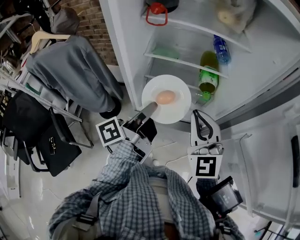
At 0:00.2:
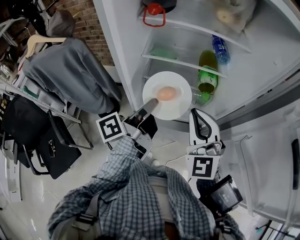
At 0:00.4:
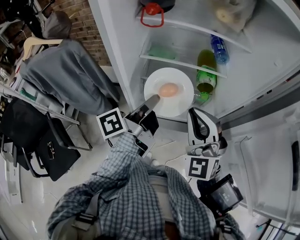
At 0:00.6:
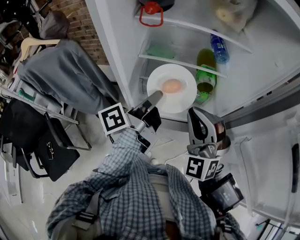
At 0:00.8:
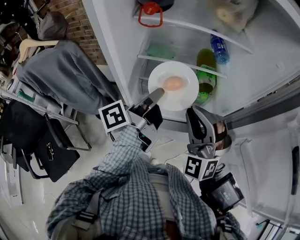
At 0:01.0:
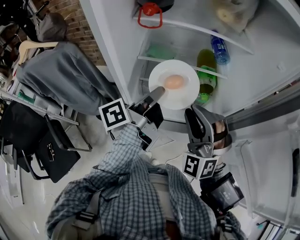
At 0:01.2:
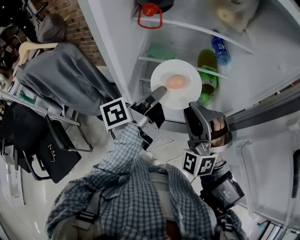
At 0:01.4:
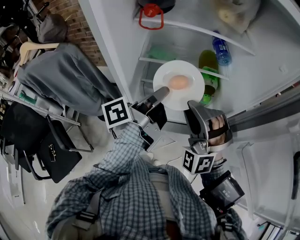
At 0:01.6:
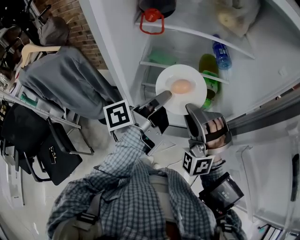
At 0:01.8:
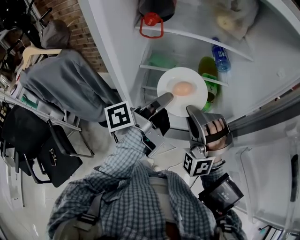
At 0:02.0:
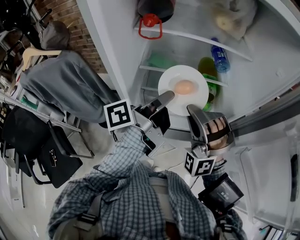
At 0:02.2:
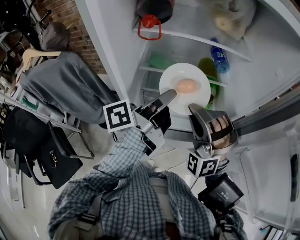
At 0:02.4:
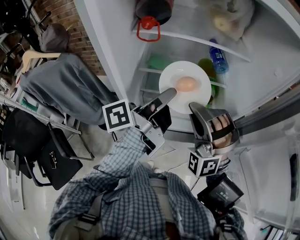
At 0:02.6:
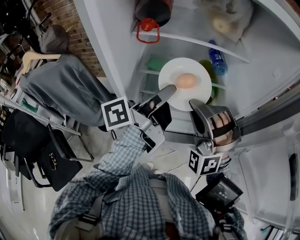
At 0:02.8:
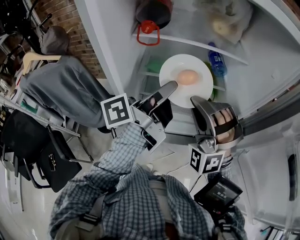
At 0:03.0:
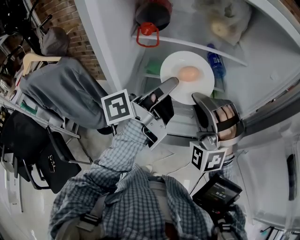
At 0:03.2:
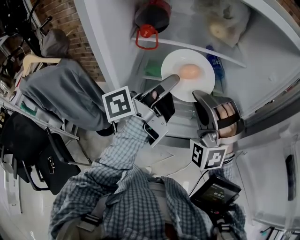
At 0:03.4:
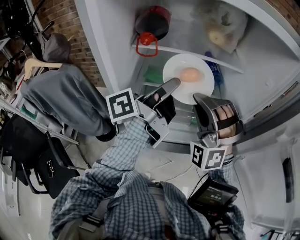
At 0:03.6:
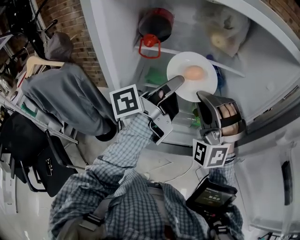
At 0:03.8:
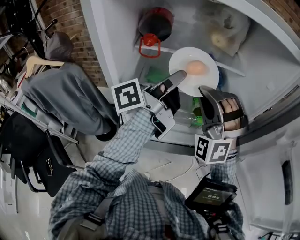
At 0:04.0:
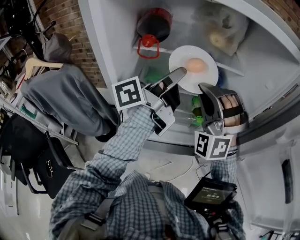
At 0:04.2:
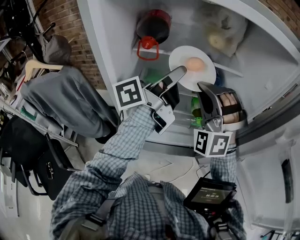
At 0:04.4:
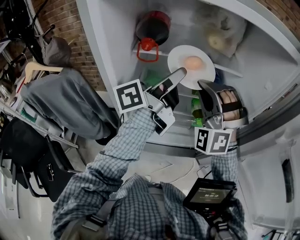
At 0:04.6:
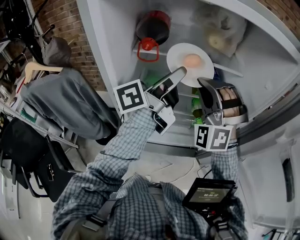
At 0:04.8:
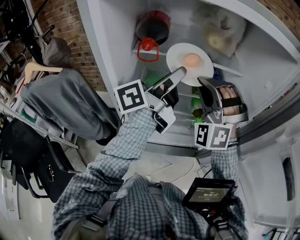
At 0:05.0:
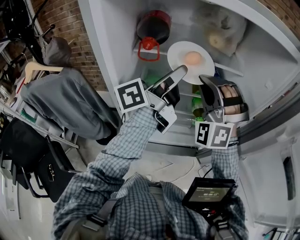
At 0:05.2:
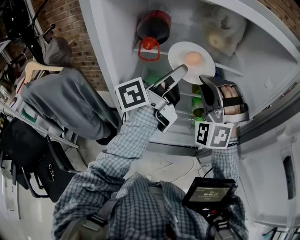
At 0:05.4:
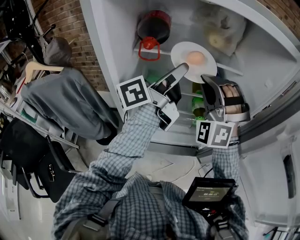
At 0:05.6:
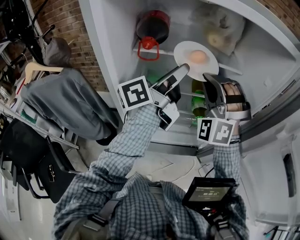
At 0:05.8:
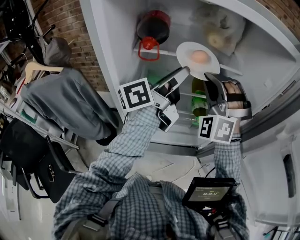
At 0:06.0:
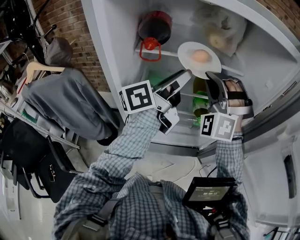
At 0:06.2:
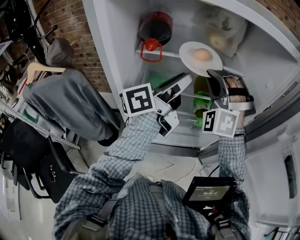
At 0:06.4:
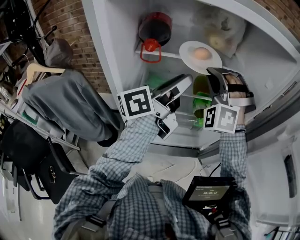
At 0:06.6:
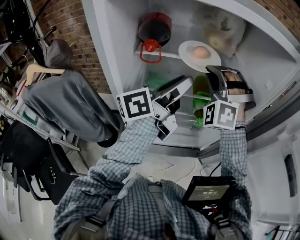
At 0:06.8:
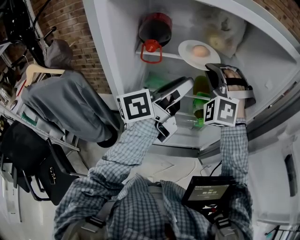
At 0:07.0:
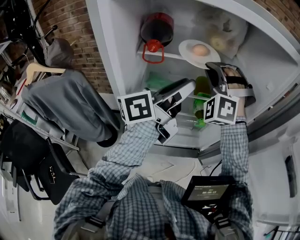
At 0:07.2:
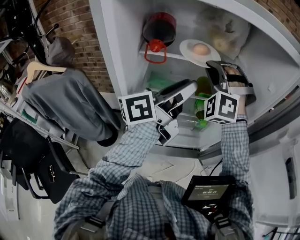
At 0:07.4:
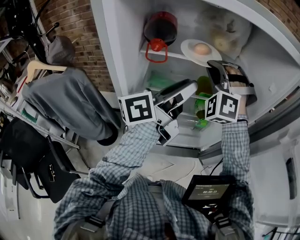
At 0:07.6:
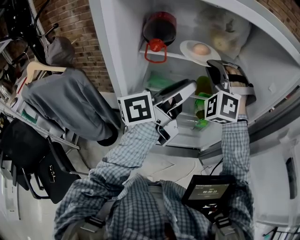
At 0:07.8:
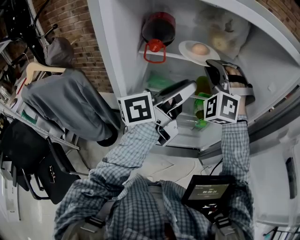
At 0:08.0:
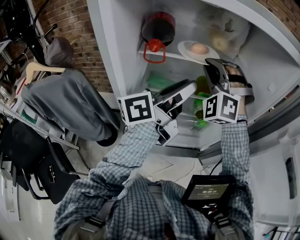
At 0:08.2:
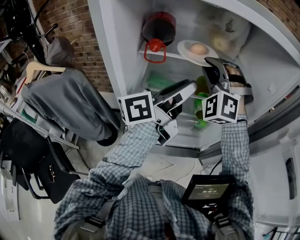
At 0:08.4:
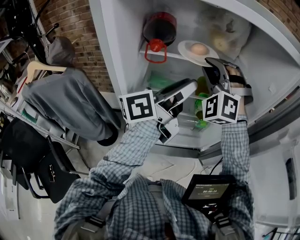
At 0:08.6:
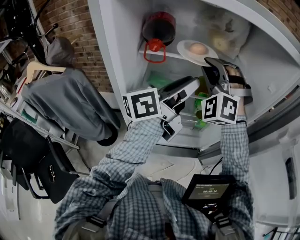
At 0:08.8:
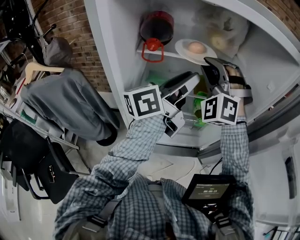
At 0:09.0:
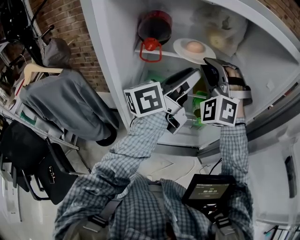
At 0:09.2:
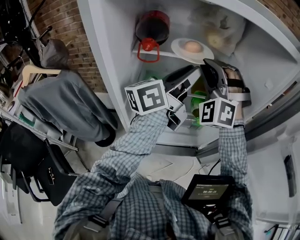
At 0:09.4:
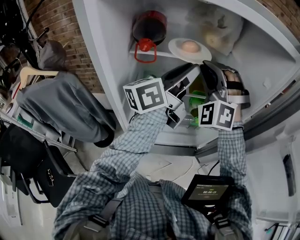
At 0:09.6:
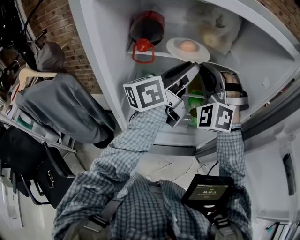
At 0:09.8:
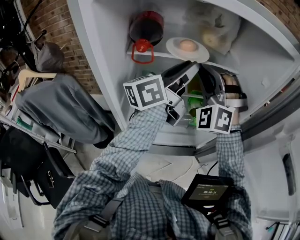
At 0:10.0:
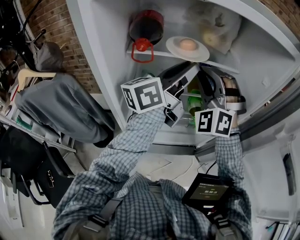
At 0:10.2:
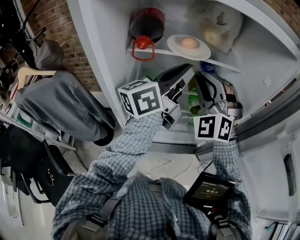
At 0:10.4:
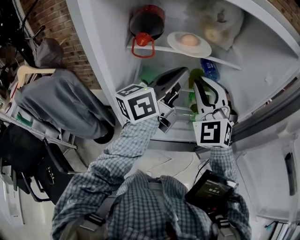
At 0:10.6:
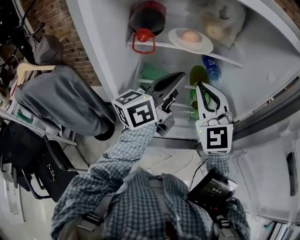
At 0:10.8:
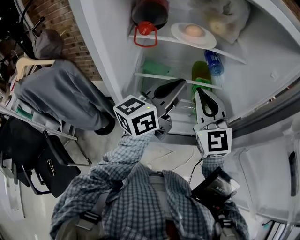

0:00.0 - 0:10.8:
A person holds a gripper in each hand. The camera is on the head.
0:00.0 - 0:01.6: The right gripper is displaced forward by roughly 5 cm, twists about 60 degrees counterclockwise, seen from behind, and opens. Meanwhile the left gripper goes about 10 cm forward.
0:01.6 - 0:03.0: The two grippers go about 10 cm upward.
0:03.0 - 0:04.6: The two grippers go some 5 cm forward.
0:04.6 - 0:06.2: The grippers make only small movements.
0:06.2 - 0:07.8: The grippers stay close to where they were, moving slightly.
0:07.8 - 0:09.2: The left gripper shifts by approximately 5 cm.
0:09.2 - 0:10.8: The right gripper travels backward and downward by about 10 cm, and rolls clockwise, seen from behind, by about 60 degrees. Meanwhile the left gripper is displaced downward and backward by some 10 cm, and closes up.

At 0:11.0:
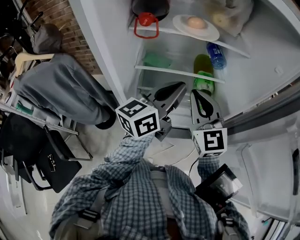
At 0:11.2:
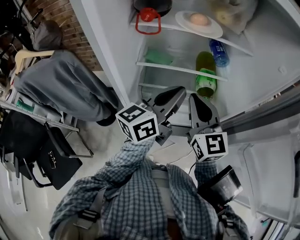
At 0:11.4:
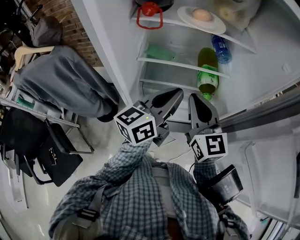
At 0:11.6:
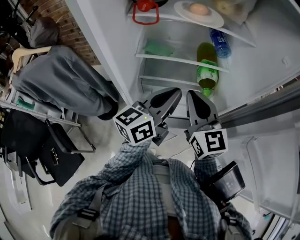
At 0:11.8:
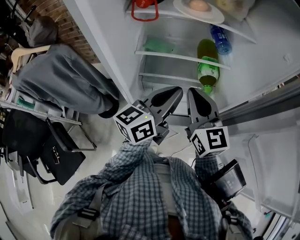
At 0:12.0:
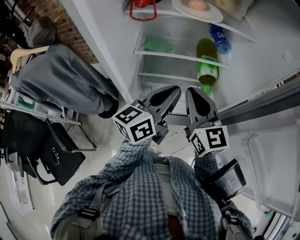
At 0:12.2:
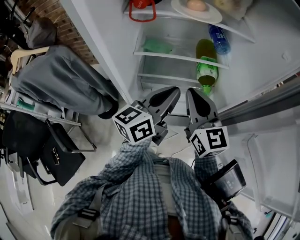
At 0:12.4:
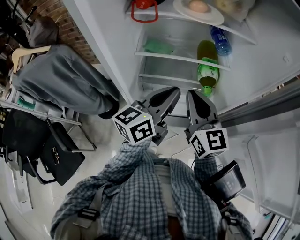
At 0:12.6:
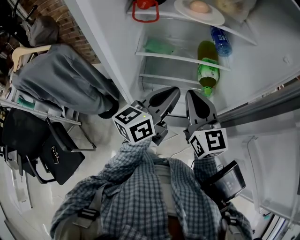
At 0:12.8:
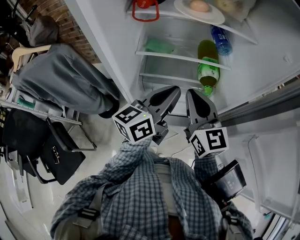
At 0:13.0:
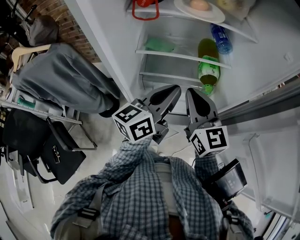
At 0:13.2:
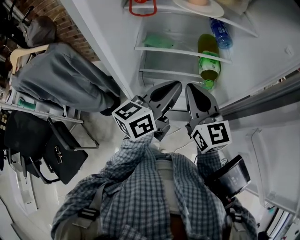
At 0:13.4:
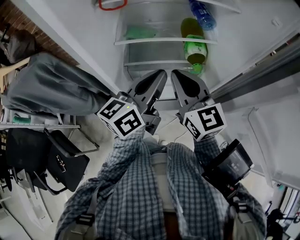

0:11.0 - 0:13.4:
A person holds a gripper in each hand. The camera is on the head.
0:11.0 - 0:12.2: The left gripper moves downward, about 5 cm.
0:12.2 - 0:13.4: The grippers stay close to where they were, moving slightly.

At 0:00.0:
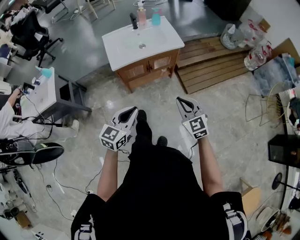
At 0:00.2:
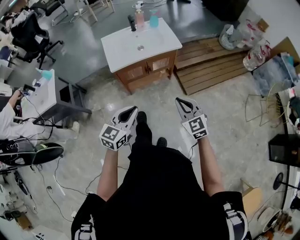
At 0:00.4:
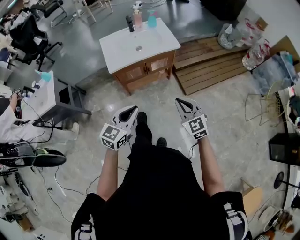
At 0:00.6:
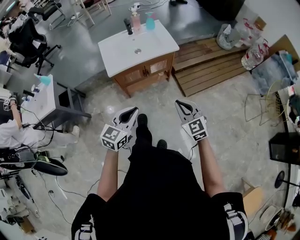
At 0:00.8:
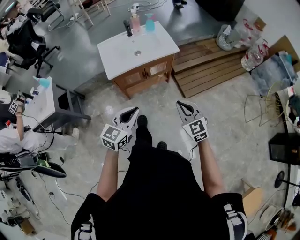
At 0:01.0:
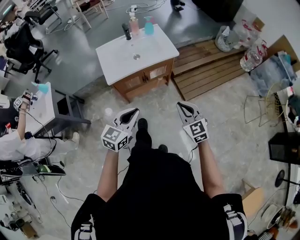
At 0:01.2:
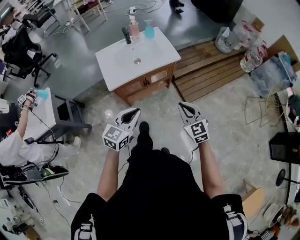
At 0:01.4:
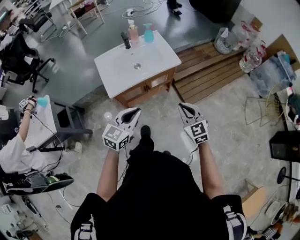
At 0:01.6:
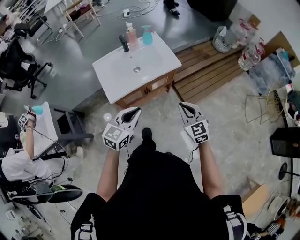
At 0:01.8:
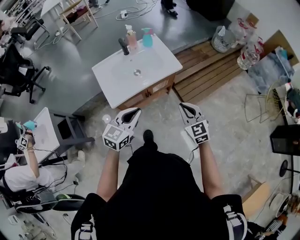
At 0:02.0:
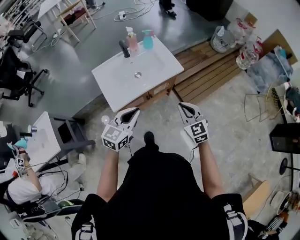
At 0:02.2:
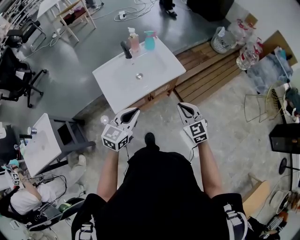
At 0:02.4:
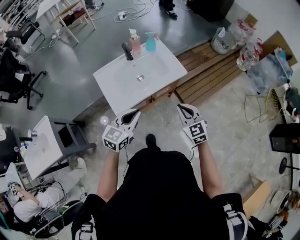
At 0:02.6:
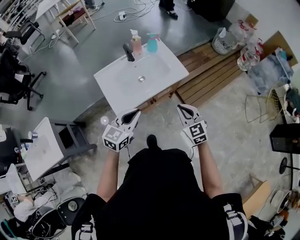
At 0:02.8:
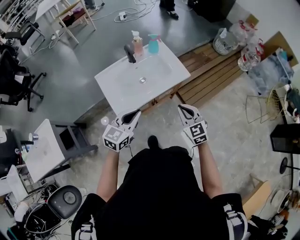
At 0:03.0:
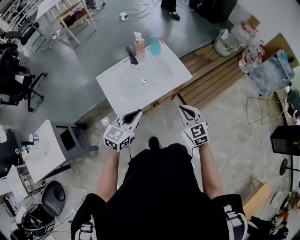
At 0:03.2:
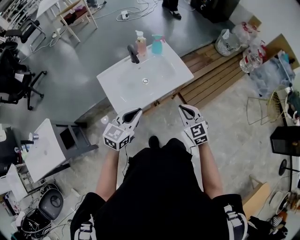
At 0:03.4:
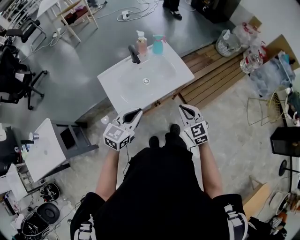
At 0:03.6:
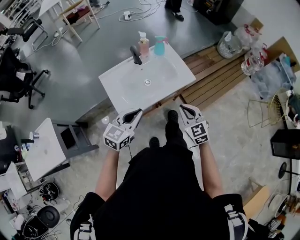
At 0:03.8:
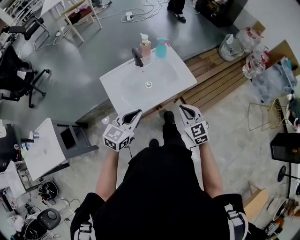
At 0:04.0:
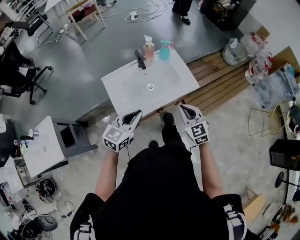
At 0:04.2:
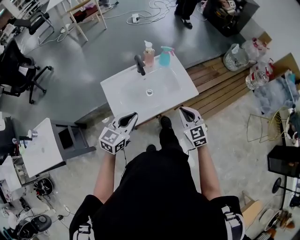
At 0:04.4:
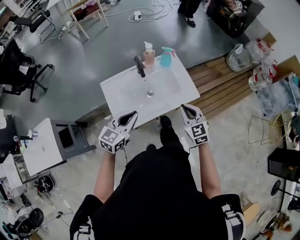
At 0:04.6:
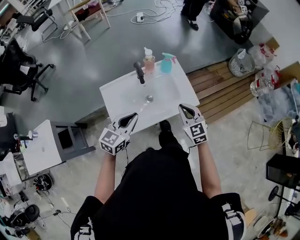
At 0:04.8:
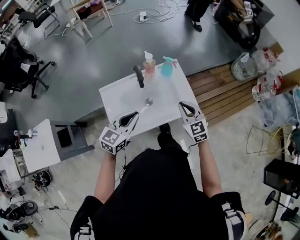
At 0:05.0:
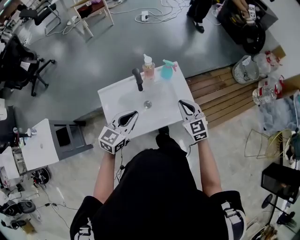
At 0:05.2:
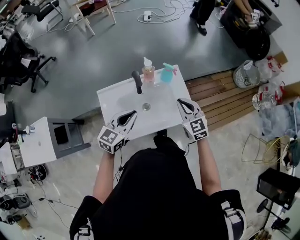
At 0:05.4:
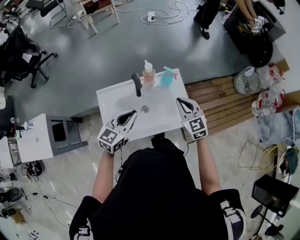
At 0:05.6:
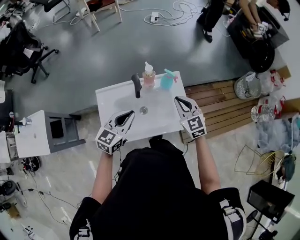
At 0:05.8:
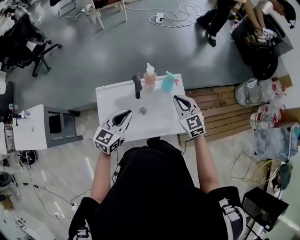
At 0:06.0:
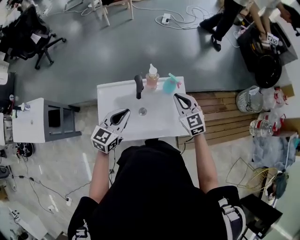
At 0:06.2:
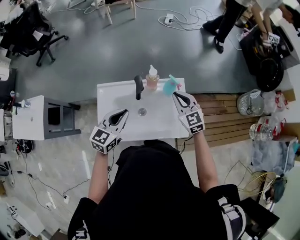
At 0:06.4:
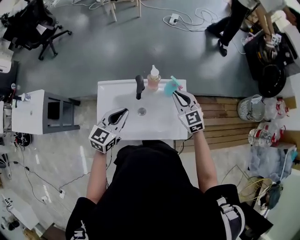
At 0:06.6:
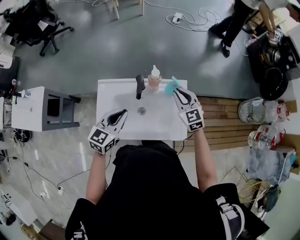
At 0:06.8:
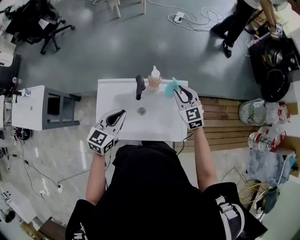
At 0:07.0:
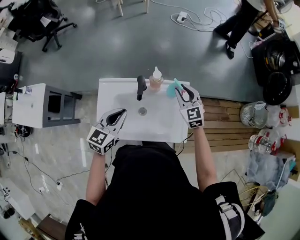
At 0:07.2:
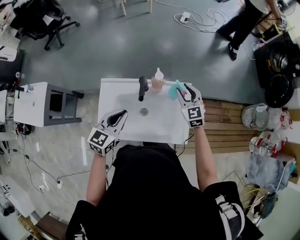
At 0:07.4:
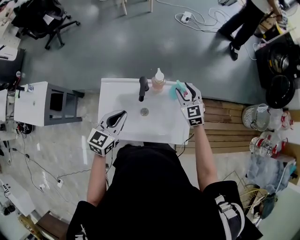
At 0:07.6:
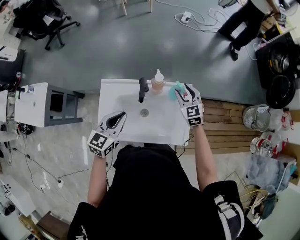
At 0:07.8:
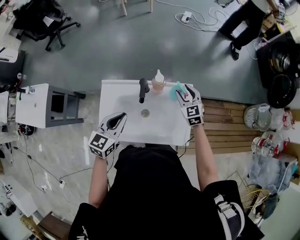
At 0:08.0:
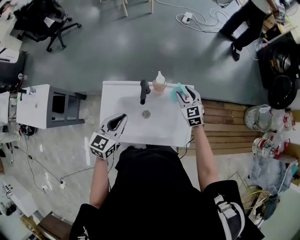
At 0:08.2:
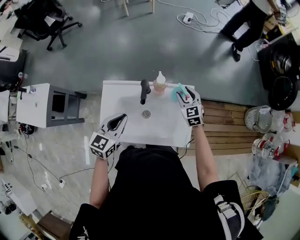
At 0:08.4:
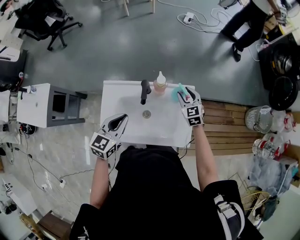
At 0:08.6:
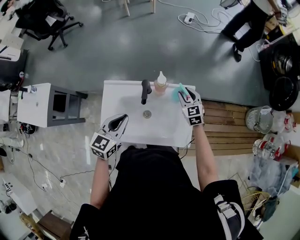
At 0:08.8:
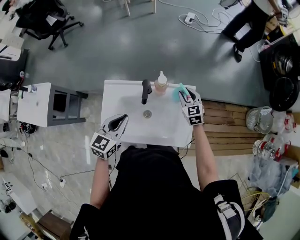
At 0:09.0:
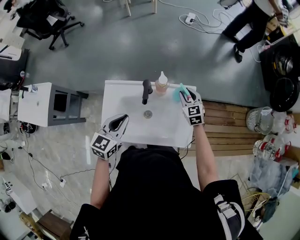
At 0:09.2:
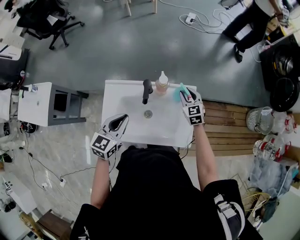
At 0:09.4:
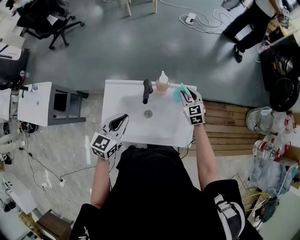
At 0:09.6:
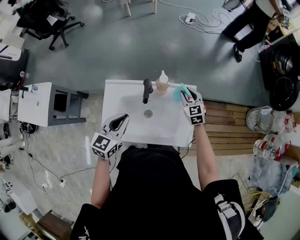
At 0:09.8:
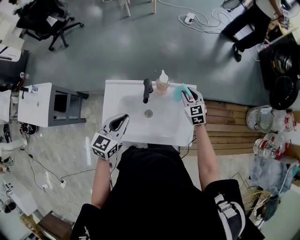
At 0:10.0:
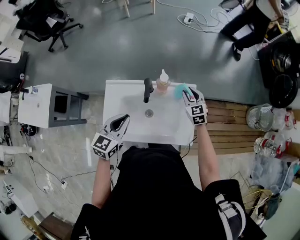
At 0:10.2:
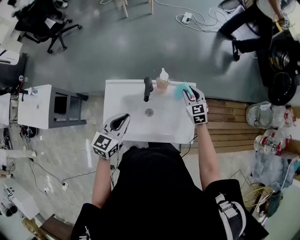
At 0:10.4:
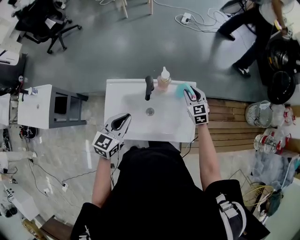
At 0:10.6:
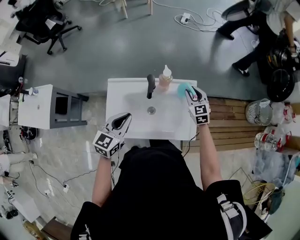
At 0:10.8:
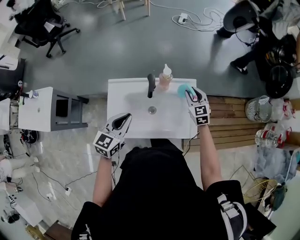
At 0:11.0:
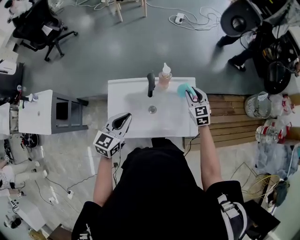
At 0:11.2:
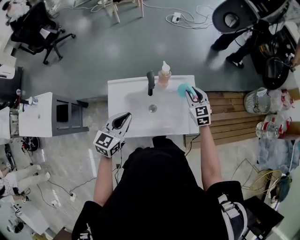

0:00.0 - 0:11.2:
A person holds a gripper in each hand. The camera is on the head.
0:00.0 - 0:01.6: The grippers both shift forward by about 20 cm.
0:01.6 - 0:03.2: Both grippers travel together to the left and forward, some 20 cm.
0:03.2 - 0:04.8: The two grippers go approximately 25 cm forward.
0:04.8 - 0:06.4: The left gripper shifts some 15 cm forward, and changes its angle by about 20 degrees. The right gripper moves forward, some 25 cm, and turns by some 20 degrees.
0:06.4 - 0:08.0: The right gripper heads forward and downward, covering approximately 15 cm, and opens its fingers.
0:08.0 - 0:09.6: The grippers stay close to where they were, moving slightly.
0:09.6 - 0:11.2: The left gripper goes about 5 cm backward; the right gripper shifts about 15 cm backward and upward.
